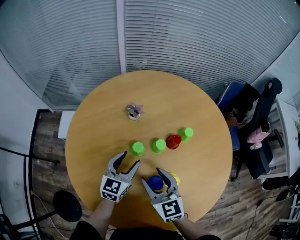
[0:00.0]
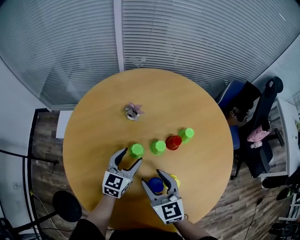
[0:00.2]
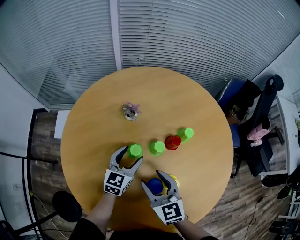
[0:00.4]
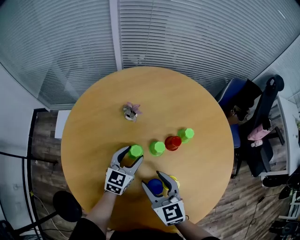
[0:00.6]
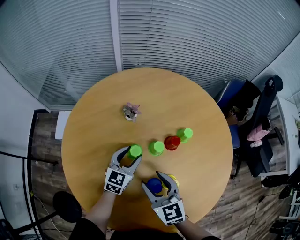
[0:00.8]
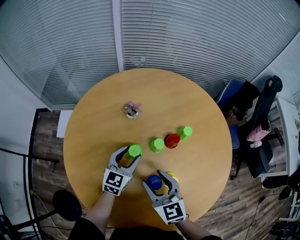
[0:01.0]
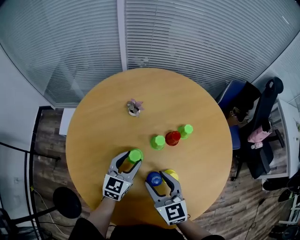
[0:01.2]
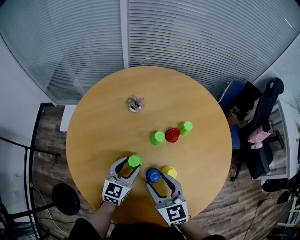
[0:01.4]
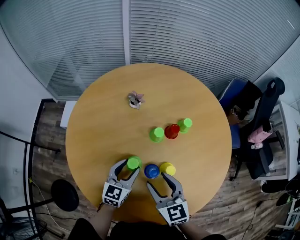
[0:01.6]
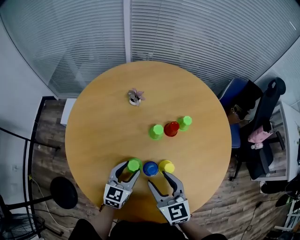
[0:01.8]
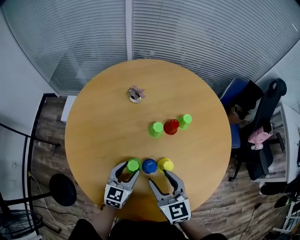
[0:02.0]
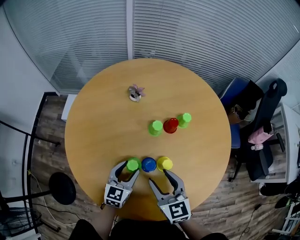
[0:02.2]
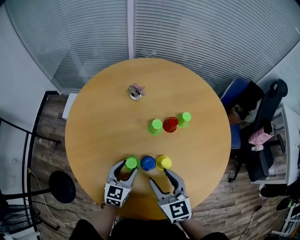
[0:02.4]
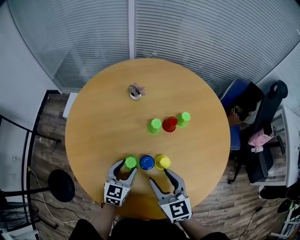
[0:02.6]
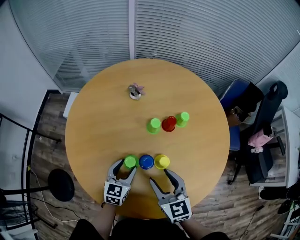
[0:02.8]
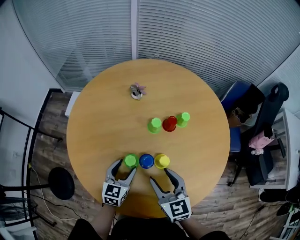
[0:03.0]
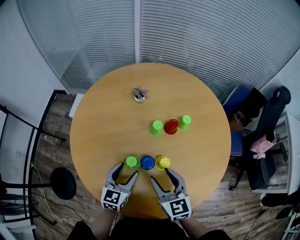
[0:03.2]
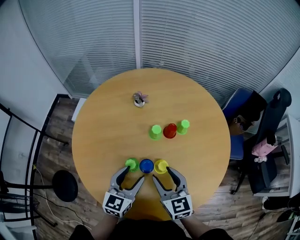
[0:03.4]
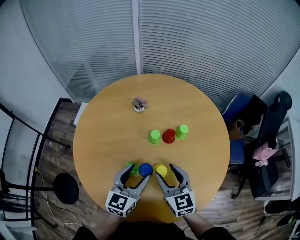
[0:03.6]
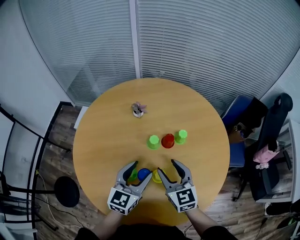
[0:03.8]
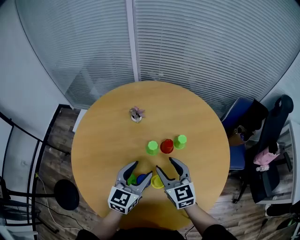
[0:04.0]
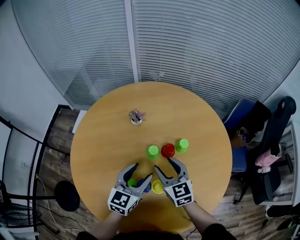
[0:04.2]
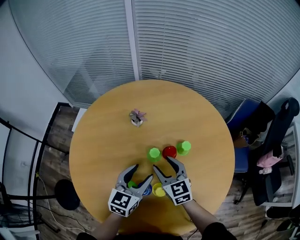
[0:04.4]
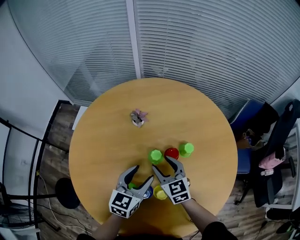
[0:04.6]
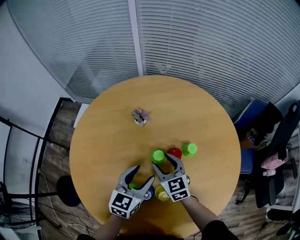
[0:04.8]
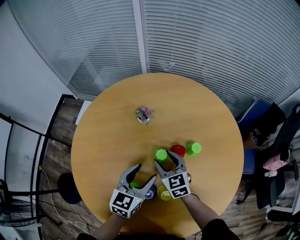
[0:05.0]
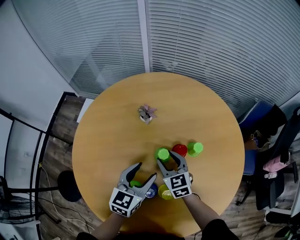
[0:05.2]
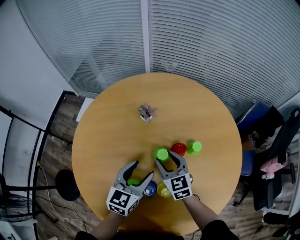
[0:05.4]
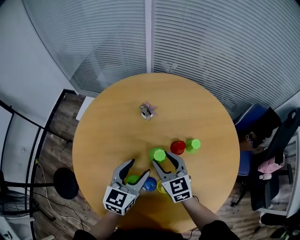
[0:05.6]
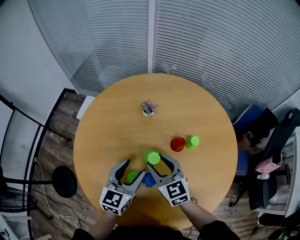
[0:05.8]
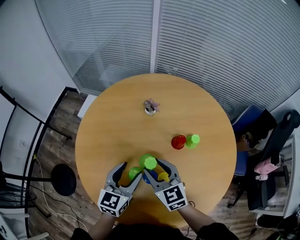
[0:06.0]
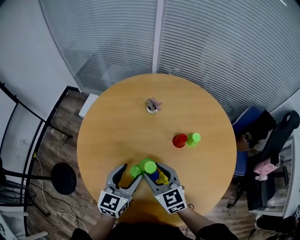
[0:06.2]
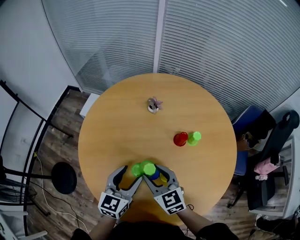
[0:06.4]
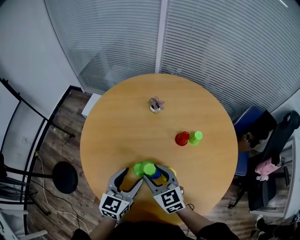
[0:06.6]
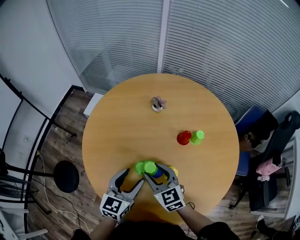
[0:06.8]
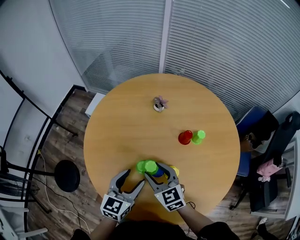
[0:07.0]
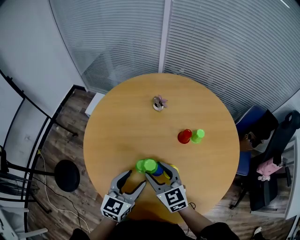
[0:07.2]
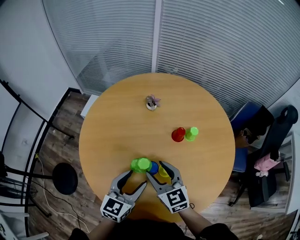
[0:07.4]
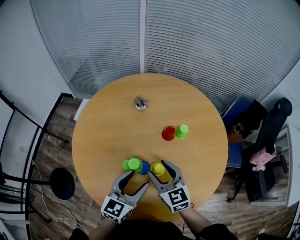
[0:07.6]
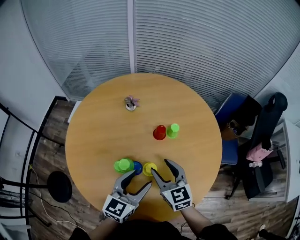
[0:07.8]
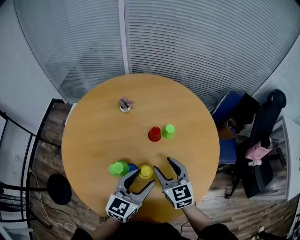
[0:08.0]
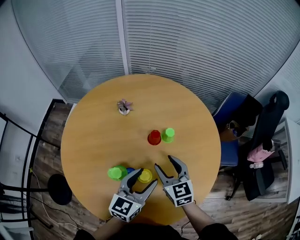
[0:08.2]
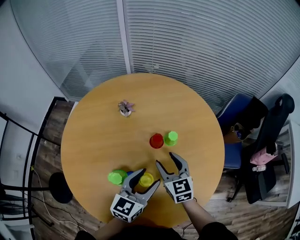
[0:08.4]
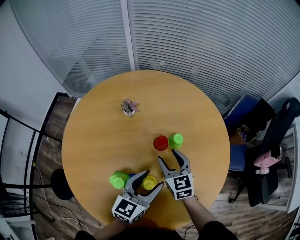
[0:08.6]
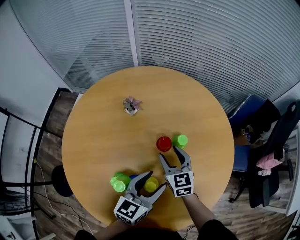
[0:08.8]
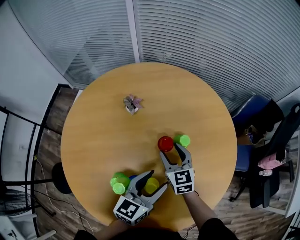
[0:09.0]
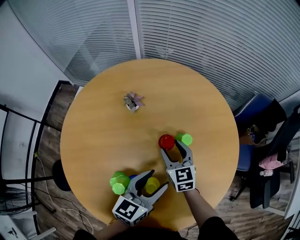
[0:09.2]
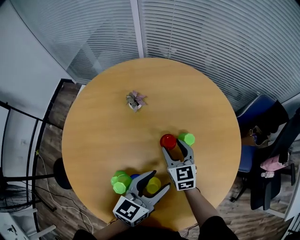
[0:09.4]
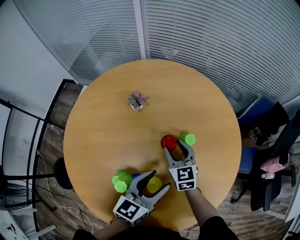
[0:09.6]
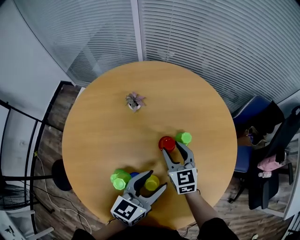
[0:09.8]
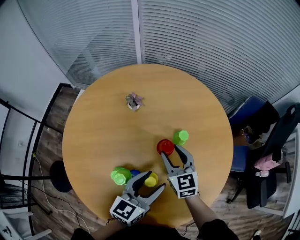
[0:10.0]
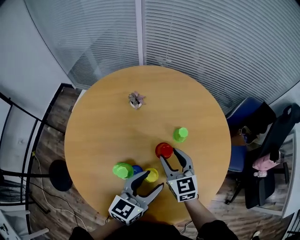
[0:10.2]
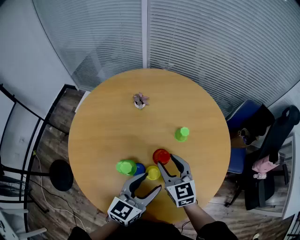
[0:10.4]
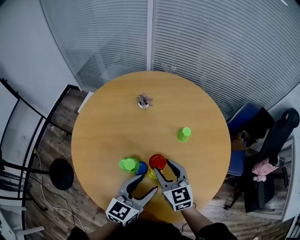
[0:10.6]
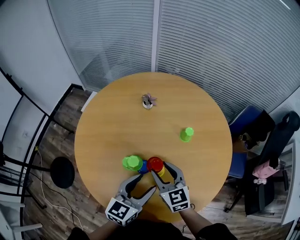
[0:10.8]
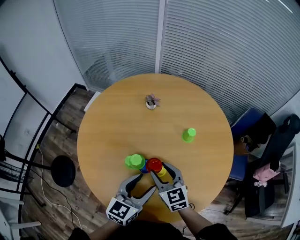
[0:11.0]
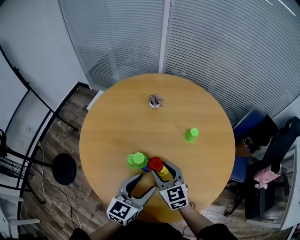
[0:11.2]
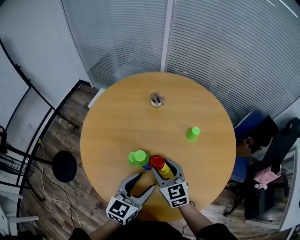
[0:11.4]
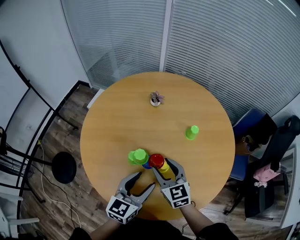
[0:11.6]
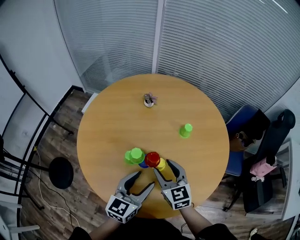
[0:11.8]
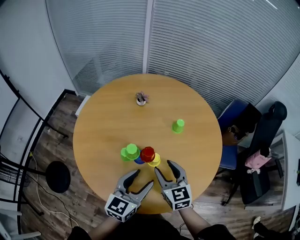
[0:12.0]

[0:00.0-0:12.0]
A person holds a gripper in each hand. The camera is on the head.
0:00.0 to 0:01.6: Both grippers move backward, approximately 10 cm.
0:01.6 to 0:03.0: The left gripper goes about 5 cm backward; the right gripper moves roughly 5 cm.
0:03.0 to 0:04.4: The left gripper moves forward, to the right and upward, approximately 15 cm. The right gripper goes roughly 20 cm forward.
0:04.4 to 0:06.0: Both grippers move to the left and backward, about 10 cm.
0:06.0 to 0:07.6: The grippers both shift backward and to the right by some 10 cm.
0:07.6 to 0:09.0: The left gripper moves forward and to the right, about 15 cm, while the right gripper goes approximately 20 cm forward and downward.
0:09.0 to 0:10.4: The right gripper heads backward and upward, covering roughly 15 cm. The left gripper travels backward by roughly 10 cm.
0:10.4 to 0:12.0: The grippers both shift backward by some 10 cm.

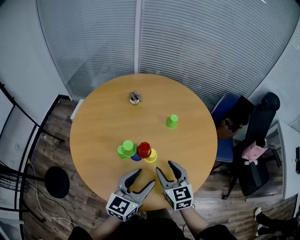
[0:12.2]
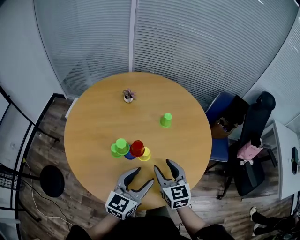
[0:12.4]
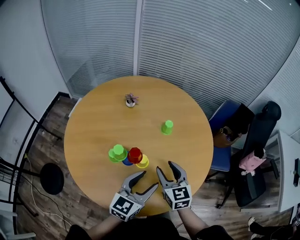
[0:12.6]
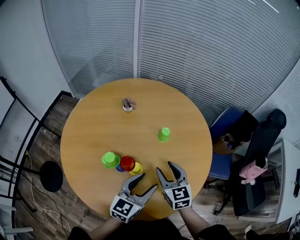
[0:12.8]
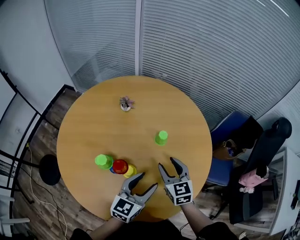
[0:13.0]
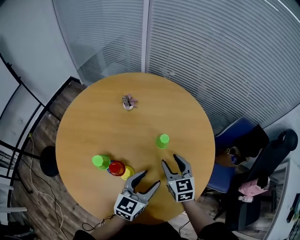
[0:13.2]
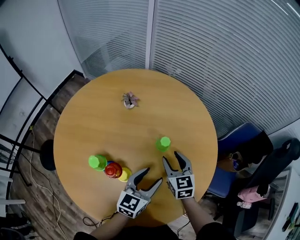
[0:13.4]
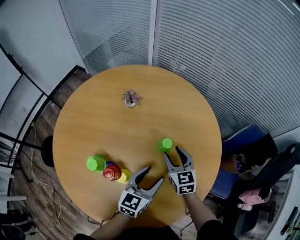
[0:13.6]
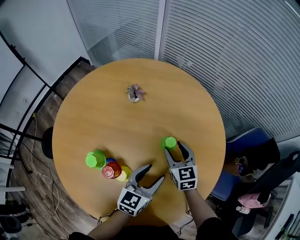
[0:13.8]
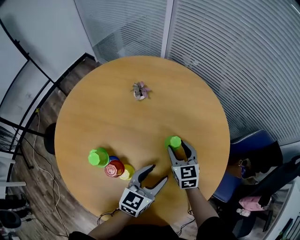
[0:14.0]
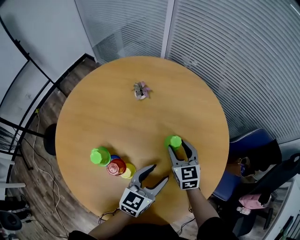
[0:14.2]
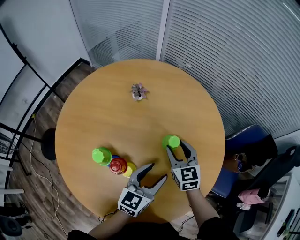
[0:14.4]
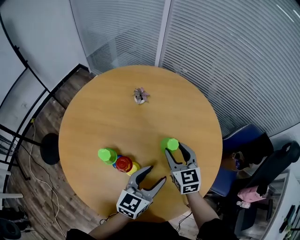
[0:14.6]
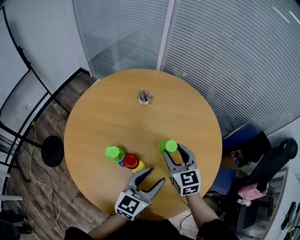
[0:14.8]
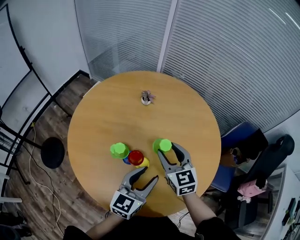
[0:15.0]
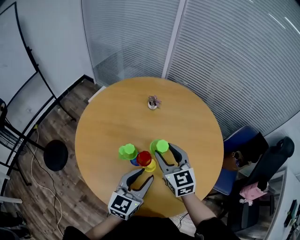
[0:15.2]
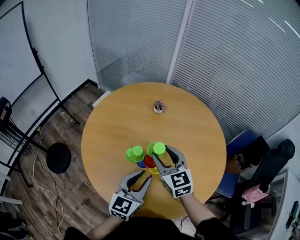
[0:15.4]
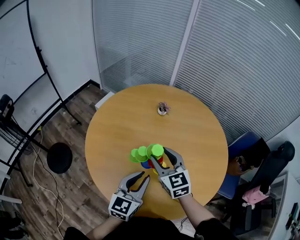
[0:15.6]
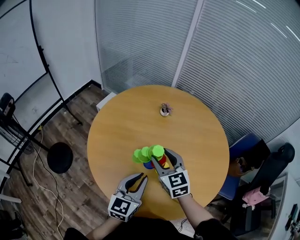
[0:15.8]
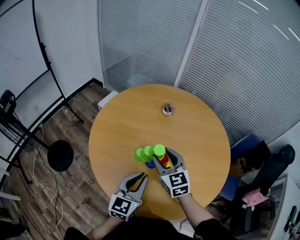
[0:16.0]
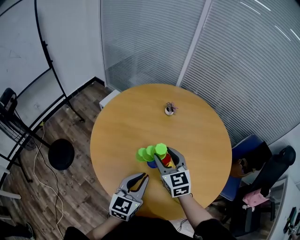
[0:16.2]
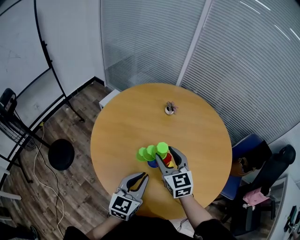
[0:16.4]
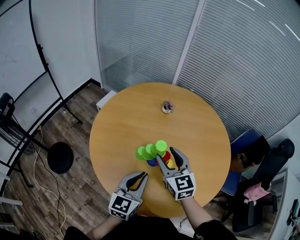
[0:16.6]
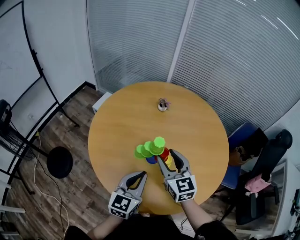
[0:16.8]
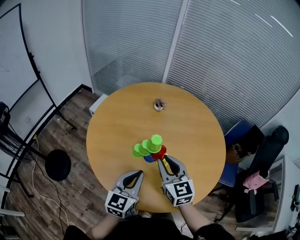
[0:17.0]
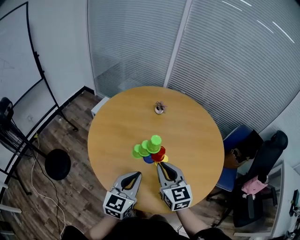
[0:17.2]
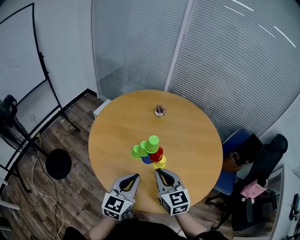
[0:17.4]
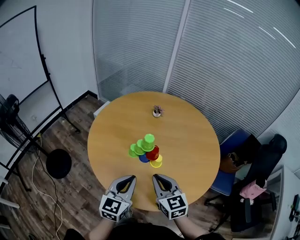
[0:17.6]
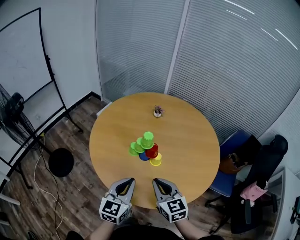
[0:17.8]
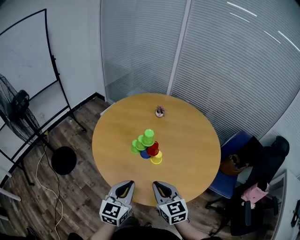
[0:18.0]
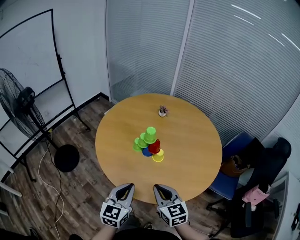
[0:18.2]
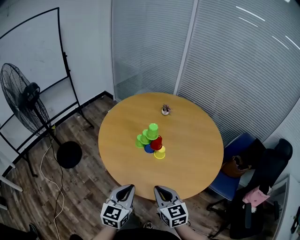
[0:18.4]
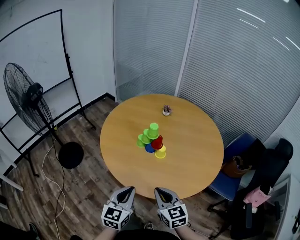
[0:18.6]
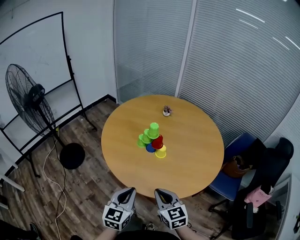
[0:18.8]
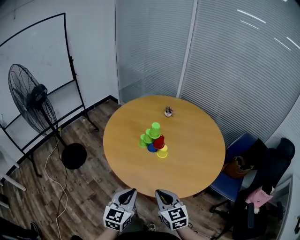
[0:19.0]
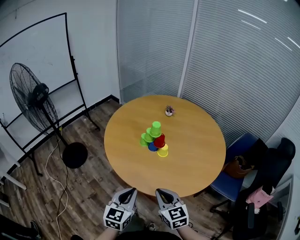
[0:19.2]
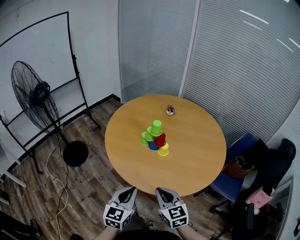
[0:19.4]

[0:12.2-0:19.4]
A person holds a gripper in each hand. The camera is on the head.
0:12.2 to 0:13.6: The left gripper is displaced forward, to the right and downward by some 25 cm, and changes its angle by about 20 degrees. Meanwhile the right gripper shifts about 30 cm forward and to the right.
0:13.6 to 0:15.0: The right gripper shifts about 20 cm upward, to the left and backward, while the left gripper is displaced to the left, backward and upward by about 15 cm.
0:15.0 to 0:16.6: The two grippers go some 15 cm to the left. The left gripper closes.
0:16.6 to 0:18.0: The left gripper heads backward, covering approximately 15 cm. The right gripper goes about 20 cm backward, and closes its fingers.
0:18.0 to 0:19.4: The two grippers go about 10 cm backward.

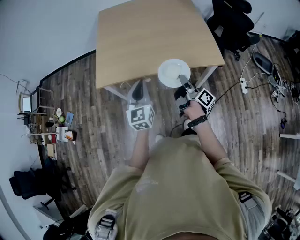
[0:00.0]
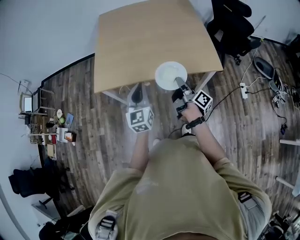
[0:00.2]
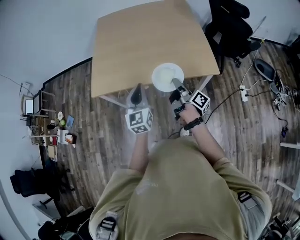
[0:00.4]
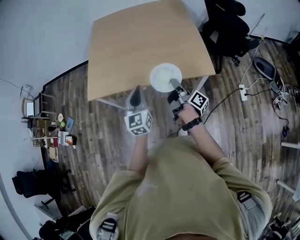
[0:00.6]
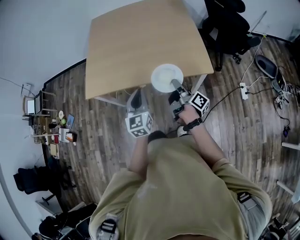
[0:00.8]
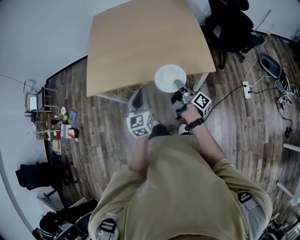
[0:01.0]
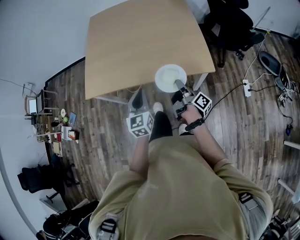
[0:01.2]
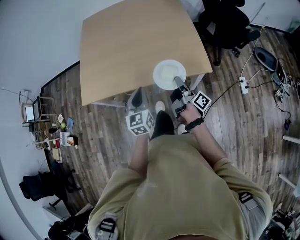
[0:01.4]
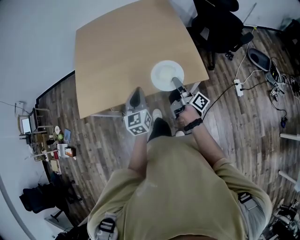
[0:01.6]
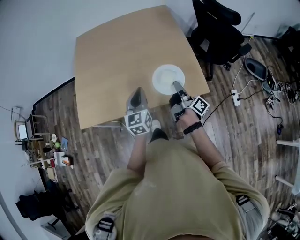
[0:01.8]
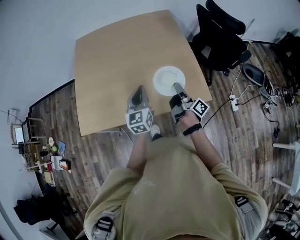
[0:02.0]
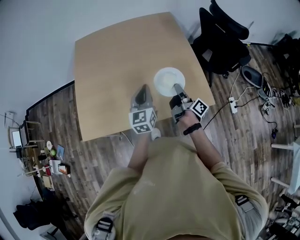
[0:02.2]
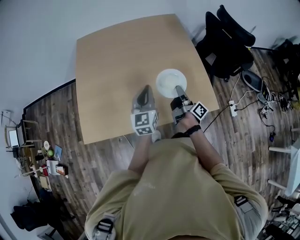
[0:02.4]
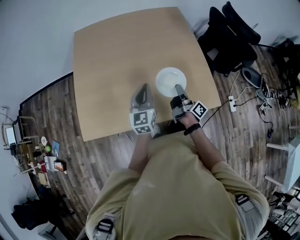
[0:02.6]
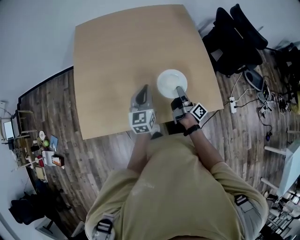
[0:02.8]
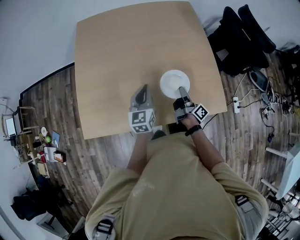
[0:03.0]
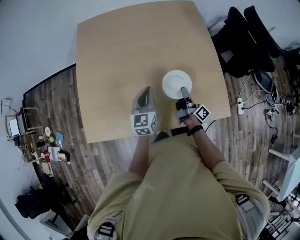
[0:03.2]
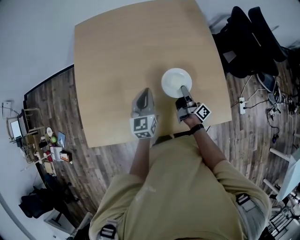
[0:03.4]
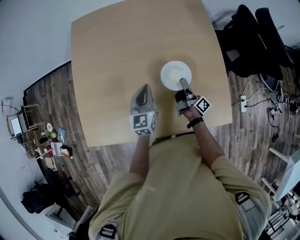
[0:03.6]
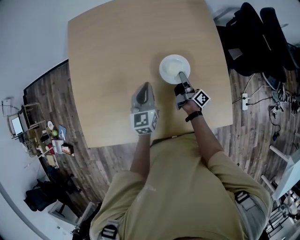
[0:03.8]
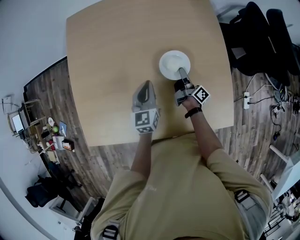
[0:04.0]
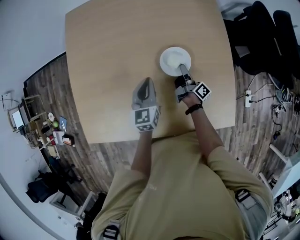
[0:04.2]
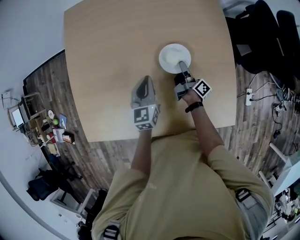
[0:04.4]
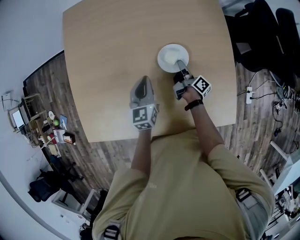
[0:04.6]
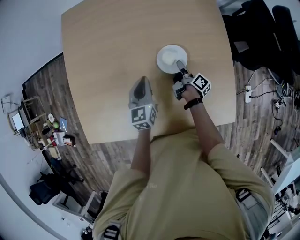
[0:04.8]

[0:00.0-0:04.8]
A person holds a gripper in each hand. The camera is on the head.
0:00.0 to 0:01.6: Both grippers travel together to the right and forward, approximately 25 cm.
0:01.6 to 0:03.2: The left gripper goes about 30 cm forward and to the left; the right gripper shifts about 30 cm forward, to the left and downward.
0:03.2 to 0:04.8: The two grippers go about 20 cm forward and downward. The right gripper swivels some 20 degrees.
